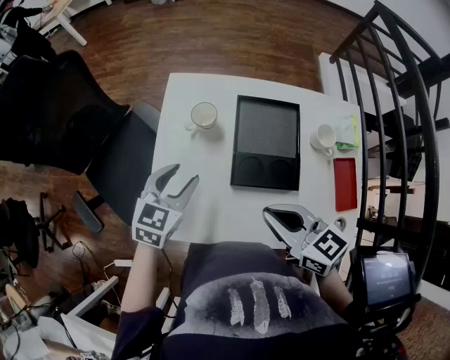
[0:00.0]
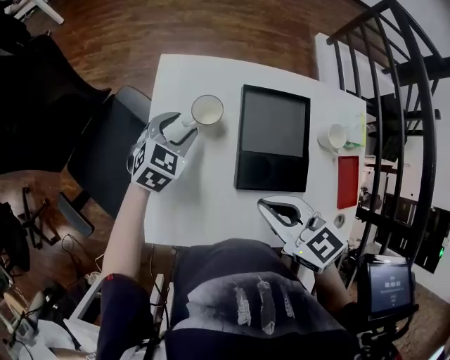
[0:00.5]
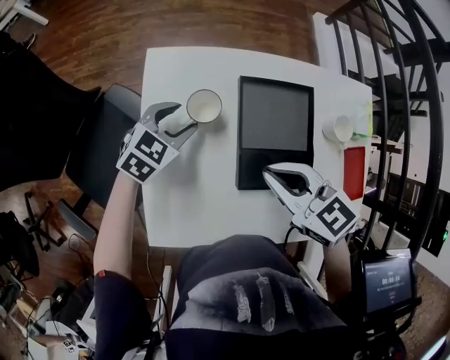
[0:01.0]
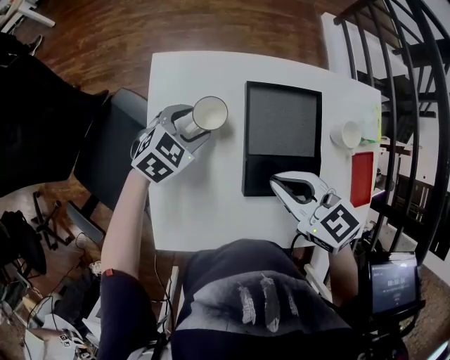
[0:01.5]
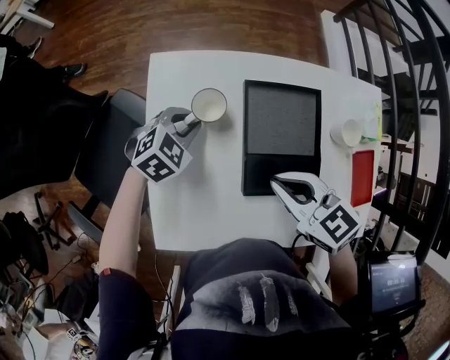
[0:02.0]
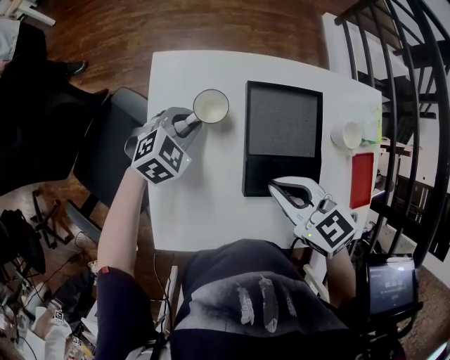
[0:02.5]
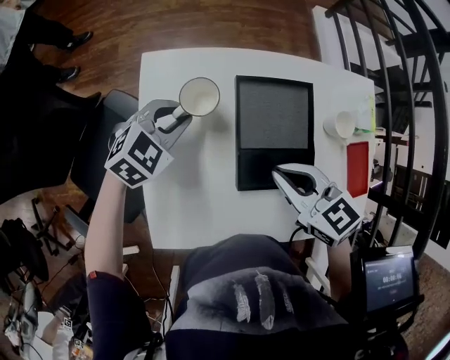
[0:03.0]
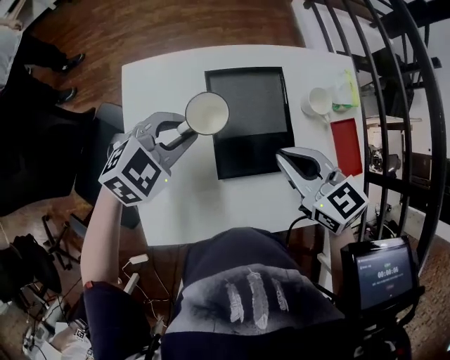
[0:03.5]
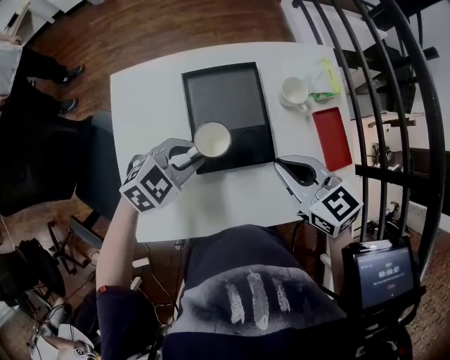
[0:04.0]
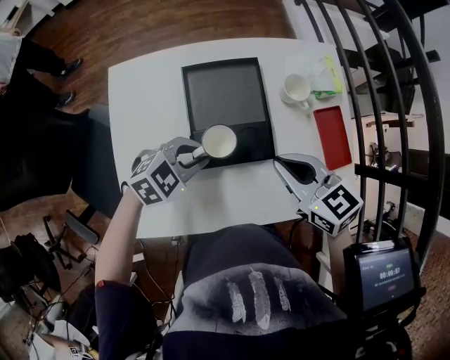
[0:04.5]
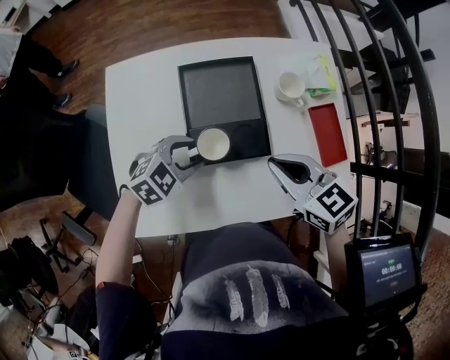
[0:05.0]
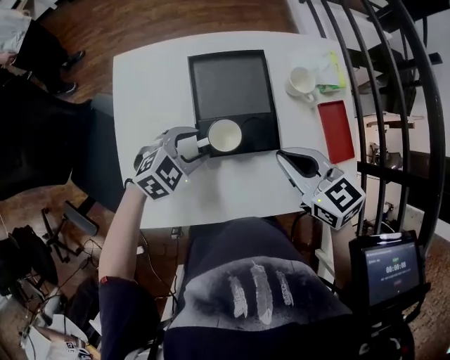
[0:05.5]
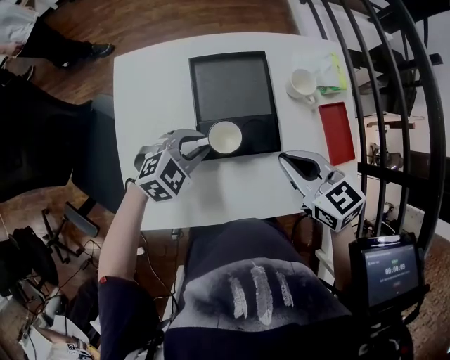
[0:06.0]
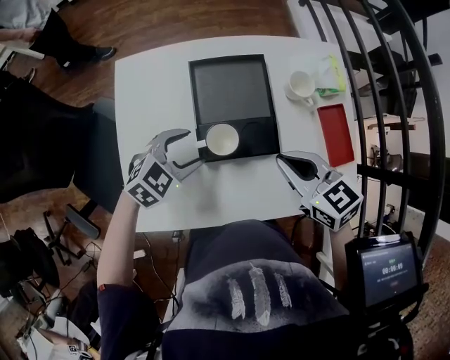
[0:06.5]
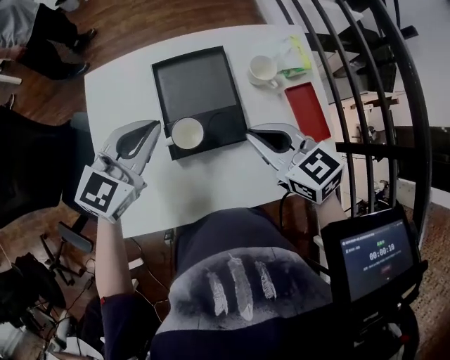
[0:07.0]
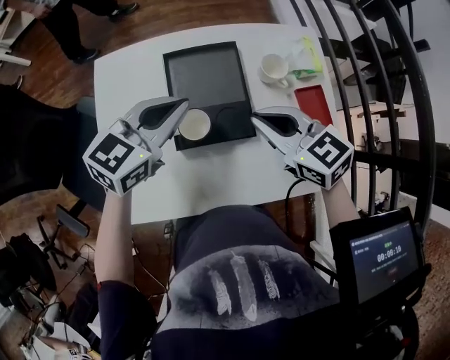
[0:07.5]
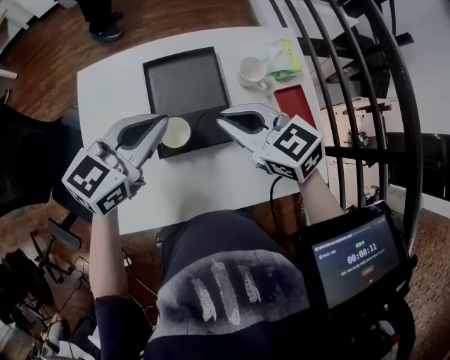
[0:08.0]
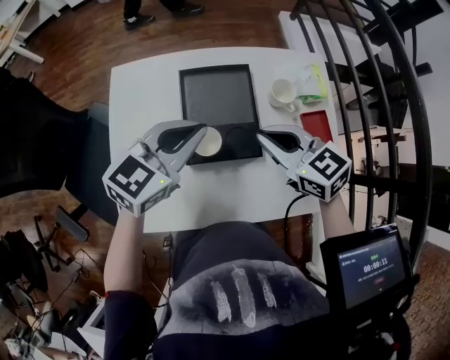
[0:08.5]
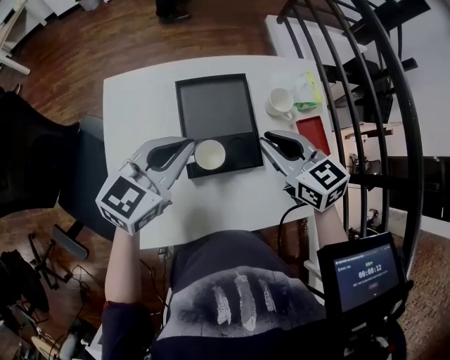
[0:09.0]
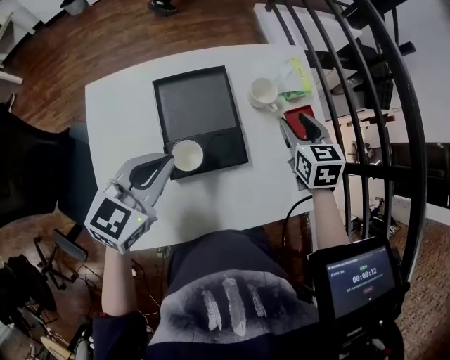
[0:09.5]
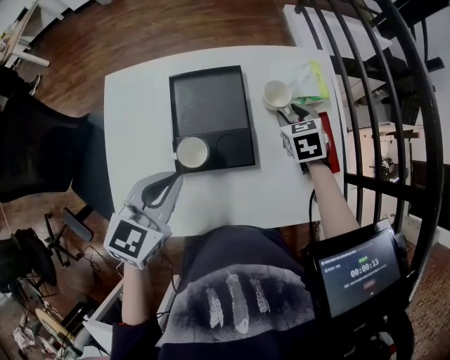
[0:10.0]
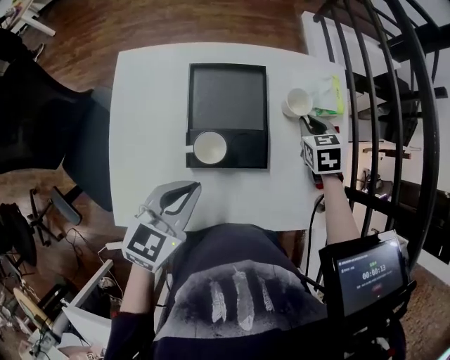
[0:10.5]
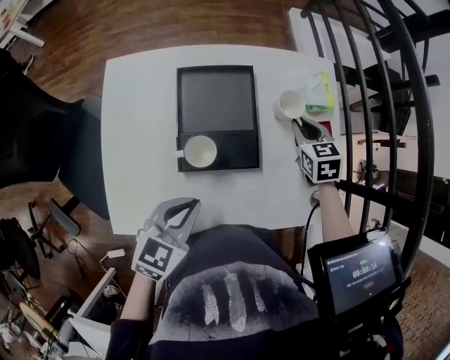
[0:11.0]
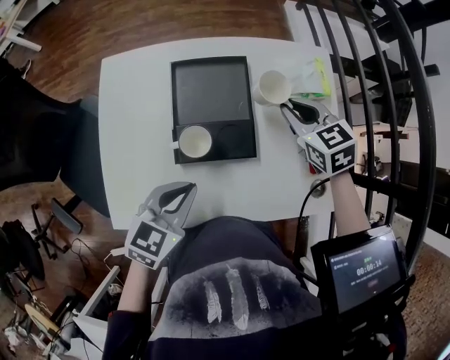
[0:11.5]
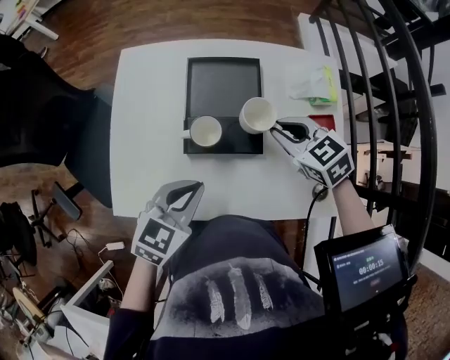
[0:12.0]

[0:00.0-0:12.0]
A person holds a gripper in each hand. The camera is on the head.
0:00.0 to 0:02.0: Both grippers move forward and downward, roughly 20 cm. The left gripper changes its angle by approximately 40 degrees, and closes up.
0:02.0 to 0:04.0: The right gripper travels to the right by about 20 cm, while the left gripper travels to the right and backward by about 25 cm.
0:04.0 to 0:06.0: The left gripper opens and closes again.
0:06.0 to 0:08.0: The left gripper travels upward by approximately 15 cm, turns by some 40 degrees, and opens, then closes again, while the right gripper is displaced forward by roughly 5 cm.
0:08.0 to 0:10.0: The left gripper moves backward, some 5 cm; the right gripper heads to the right, downward and forward, covering some 25 cm, rotates some 40 degrees, and opens up.
0:10.0 to 0:12.0: The left gripper is displaced backward and downward by approximately 10 cm. Meanwhile the right gripper moves backward, to the left and upward, some 15 cm, turns by about 40 degrees, and closes up.

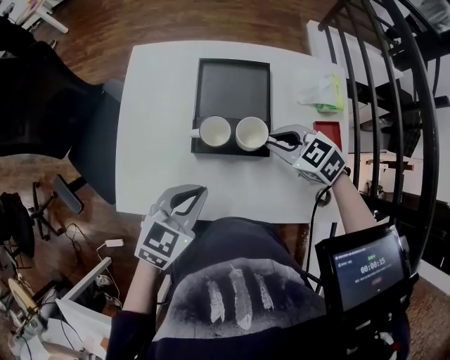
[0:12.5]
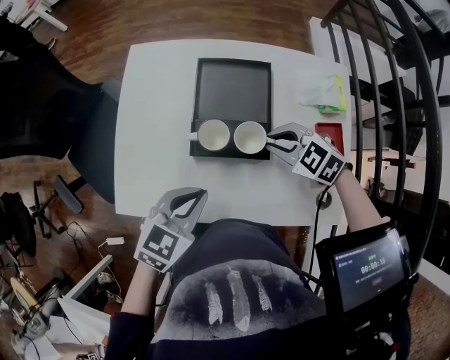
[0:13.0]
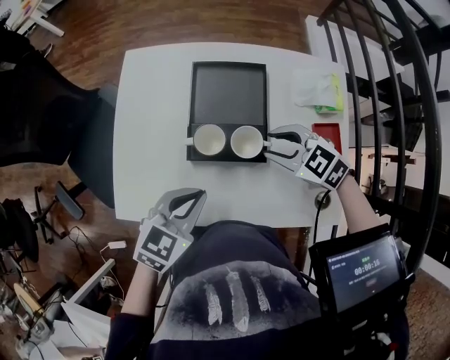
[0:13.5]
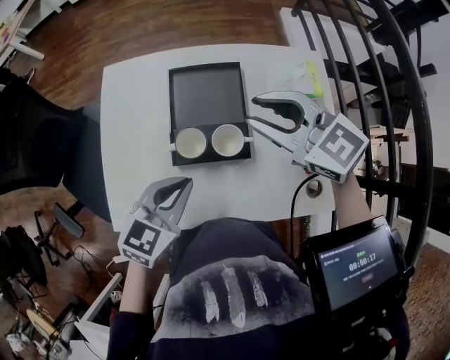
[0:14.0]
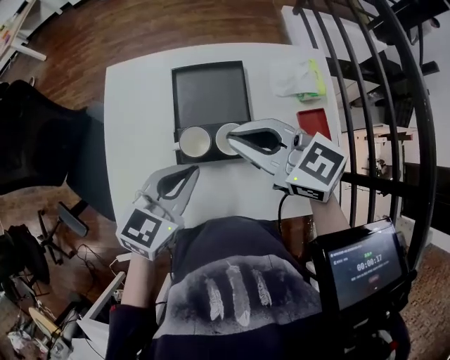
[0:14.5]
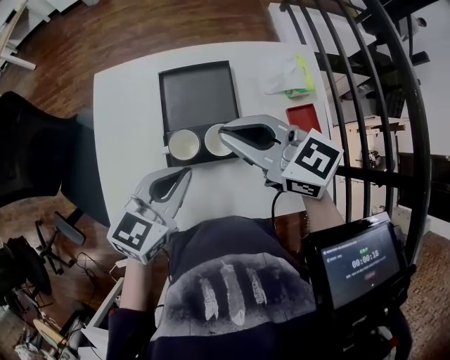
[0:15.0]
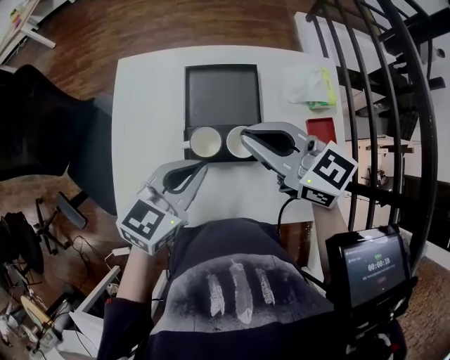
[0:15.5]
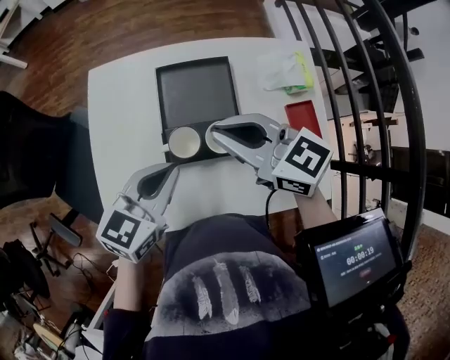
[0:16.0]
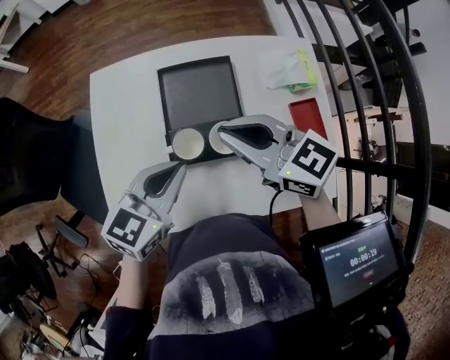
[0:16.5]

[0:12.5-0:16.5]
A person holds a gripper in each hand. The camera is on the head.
0:12.5 to 0:14.5: The right gripper heads upward and to the left, covering about 15 cm, tilts its fingers roughly 30 degrees upward, and opens and closes again, while the left gripper is displaced forward by about 5 cm.
0:14.5 to 0:16.5: There are only small adjustments of the grippers.

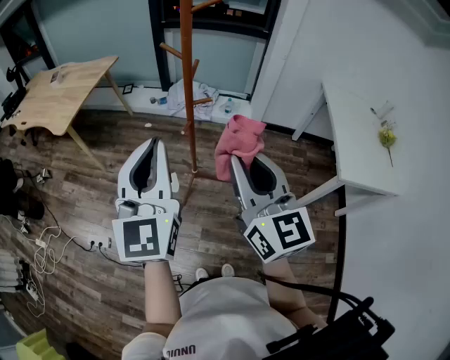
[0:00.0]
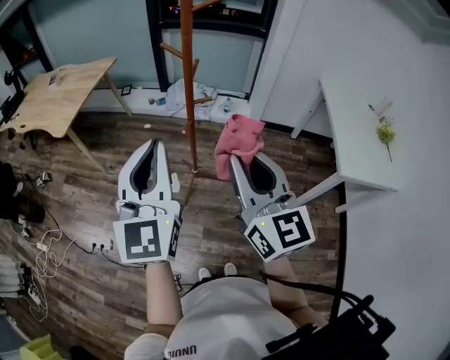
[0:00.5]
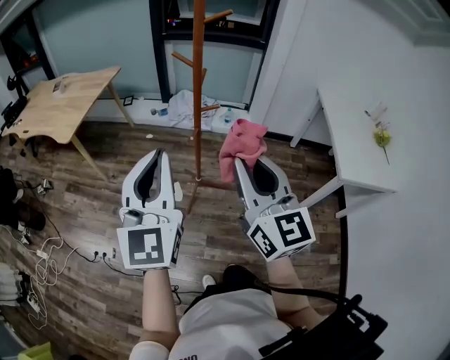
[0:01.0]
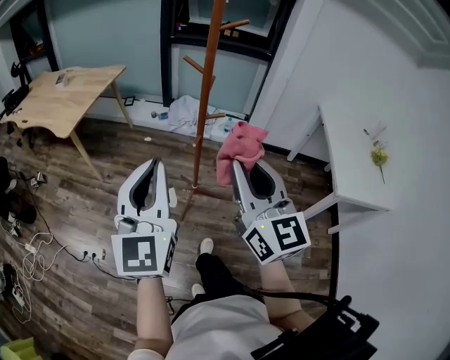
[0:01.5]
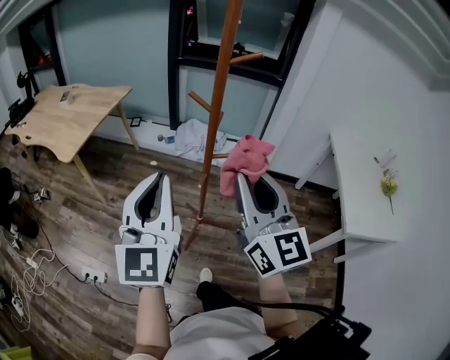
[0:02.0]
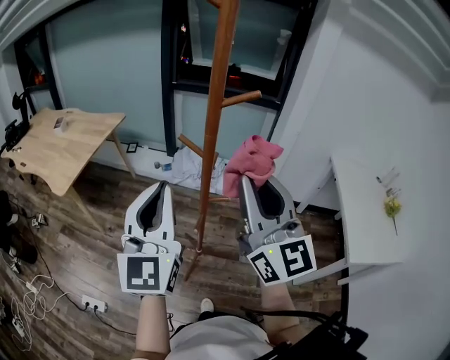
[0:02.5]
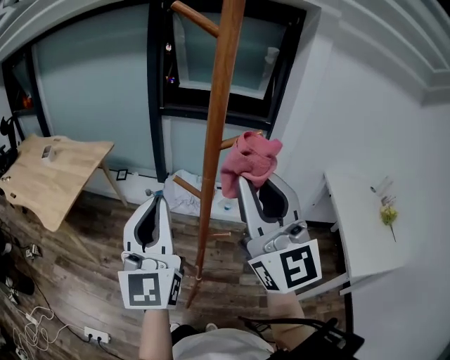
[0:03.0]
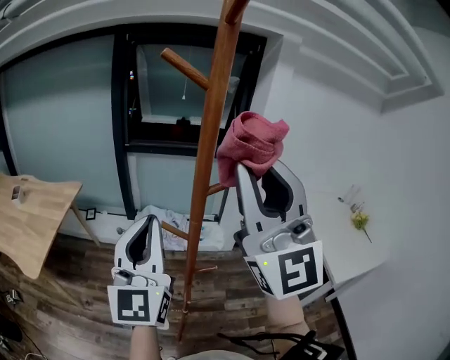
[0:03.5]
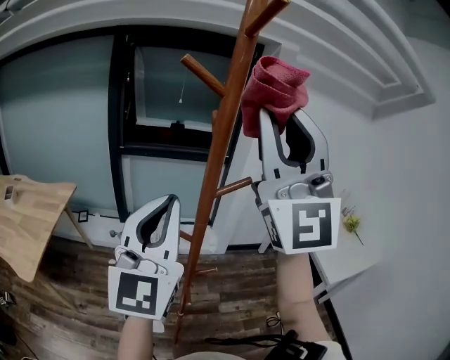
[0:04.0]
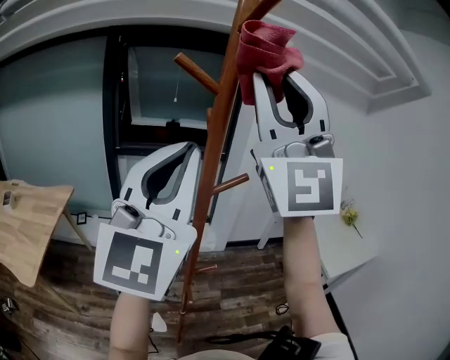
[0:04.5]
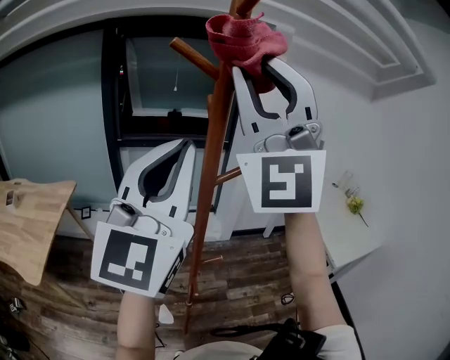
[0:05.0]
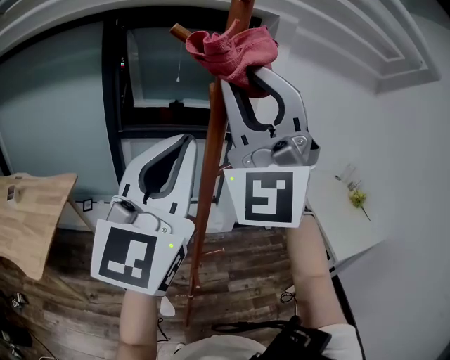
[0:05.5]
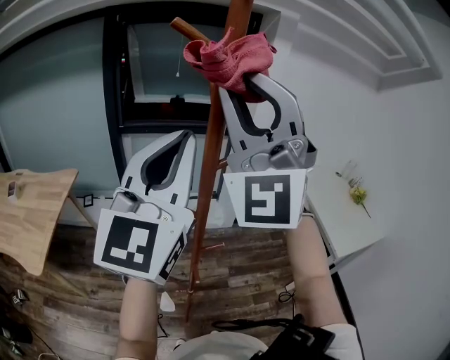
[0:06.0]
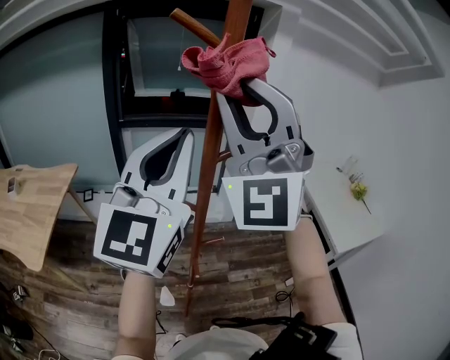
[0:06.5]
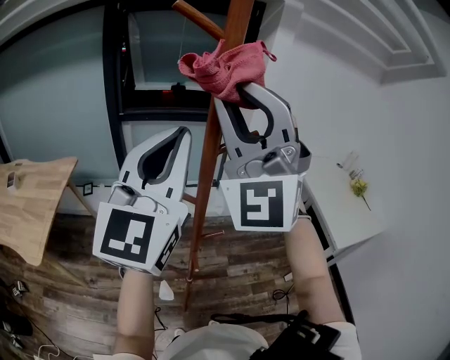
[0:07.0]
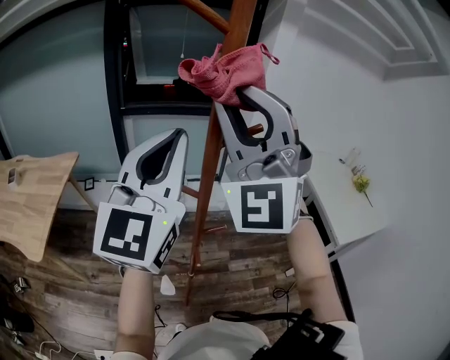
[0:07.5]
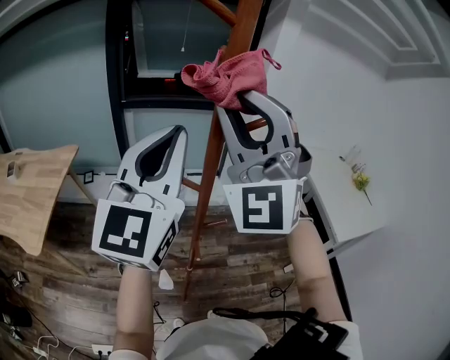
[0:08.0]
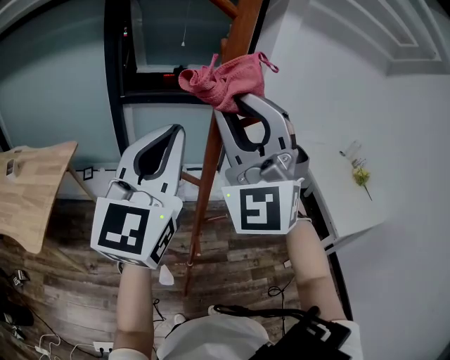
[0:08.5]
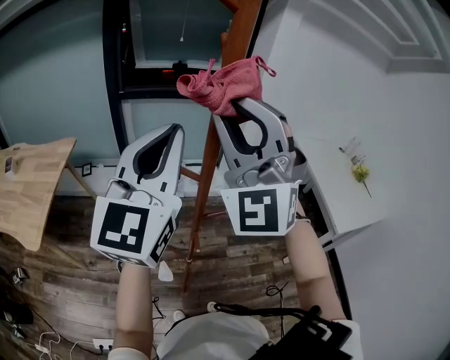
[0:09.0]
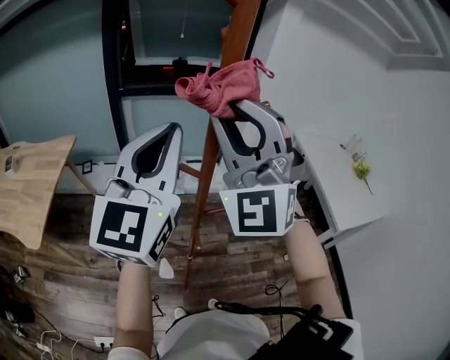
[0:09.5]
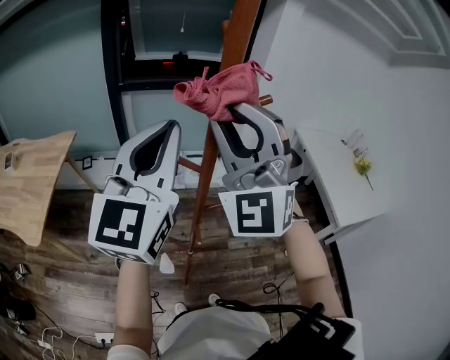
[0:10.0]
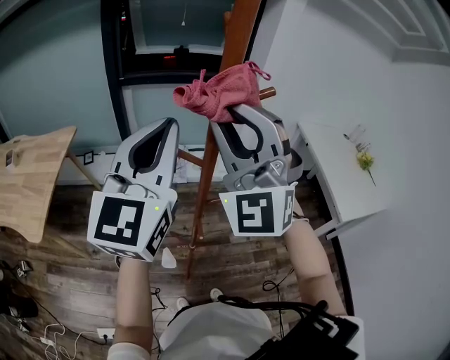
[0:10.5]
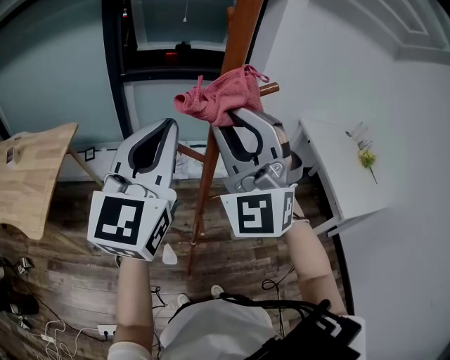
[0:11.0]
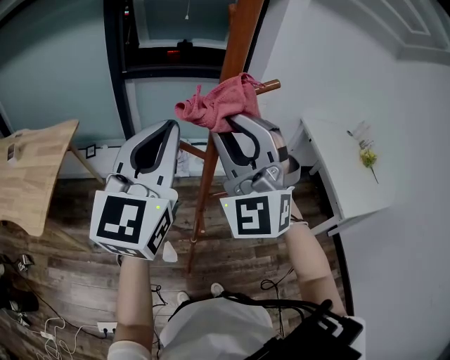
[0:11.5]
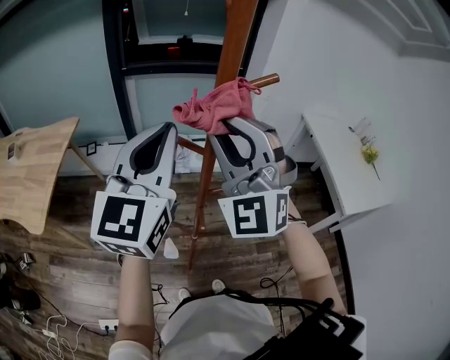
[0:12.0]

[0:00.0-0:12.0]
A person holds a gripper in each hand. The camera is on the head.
0:00.0 to 0:02.0: The grippers both shift forward by roughly 10 cm.
0:02.0 to 0:04.0: The left gripper moves forward and upward, roughly 20 cm, and rotates about 30 degrees; the right gripper travels upward and forward by some 30 cm, and twists some 50 degrees counterclockwise, seen from behind.
0:04.0 to 0:06.0: The left gripper goes roughly 5 cm upward; the right gripper shifts by roughly 5 cm, and swivels roughly 30 degrees.
0:06.0 to 0:08.0: The right gripper moves downward, roughly 5 cm. Meanwhile the left gripper moves approximately 5 cm.
0:08.0 to 0:10.0: The right gripper heads downward, covering some 5 cm.
0:10.0 to 0:12.0: The right gripper shifts about 5 cm downward.
